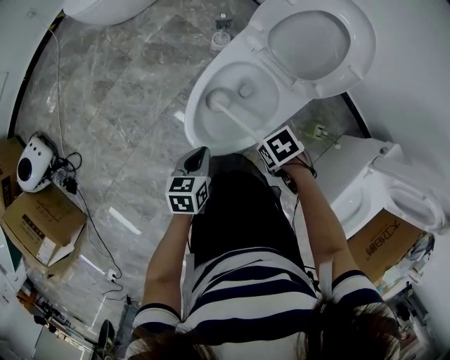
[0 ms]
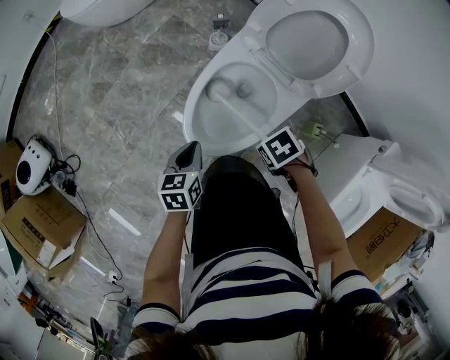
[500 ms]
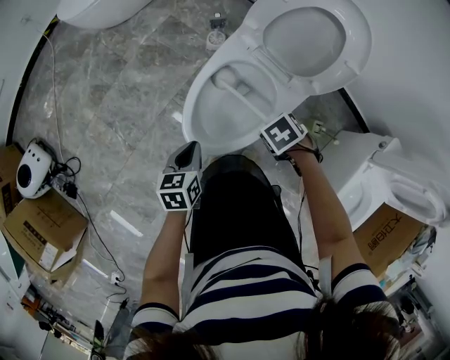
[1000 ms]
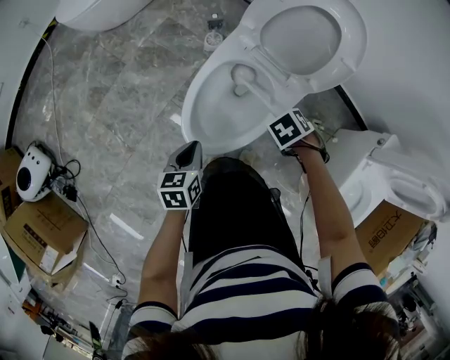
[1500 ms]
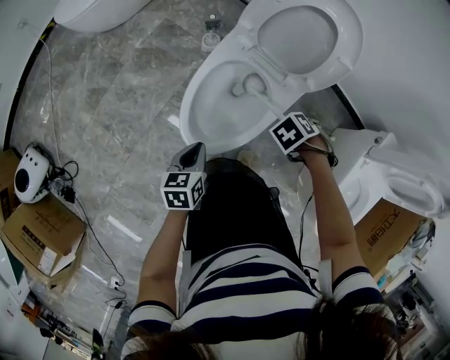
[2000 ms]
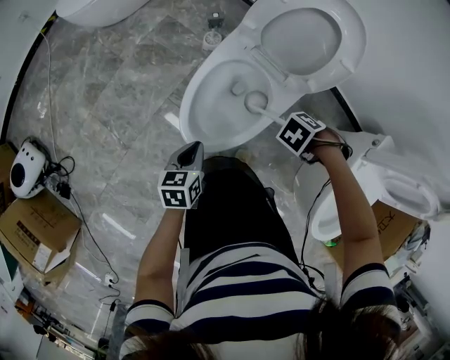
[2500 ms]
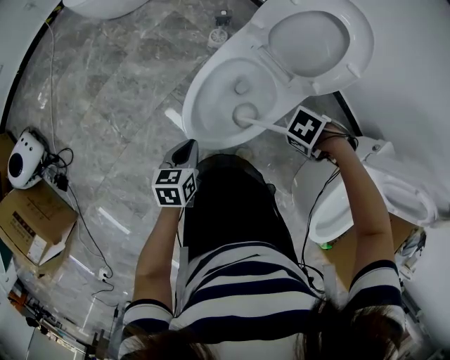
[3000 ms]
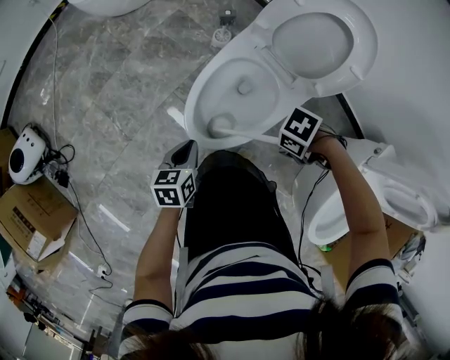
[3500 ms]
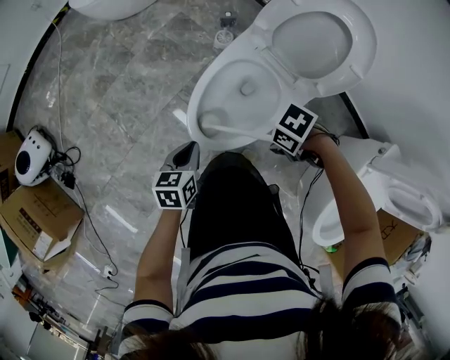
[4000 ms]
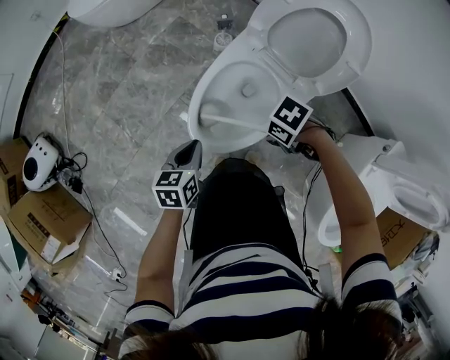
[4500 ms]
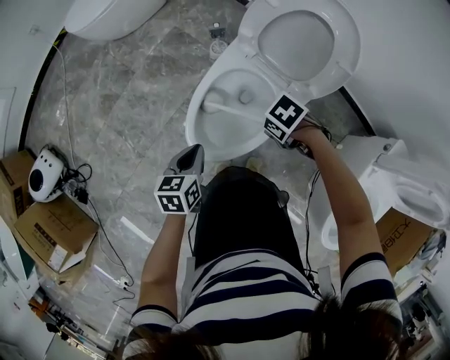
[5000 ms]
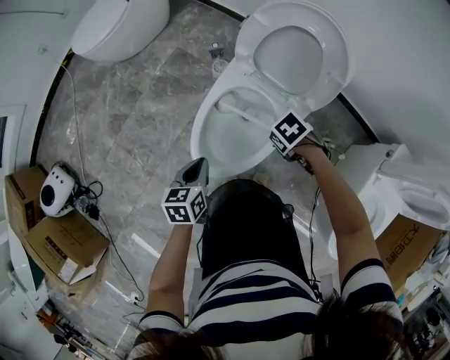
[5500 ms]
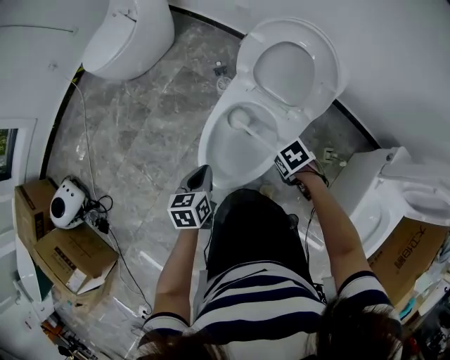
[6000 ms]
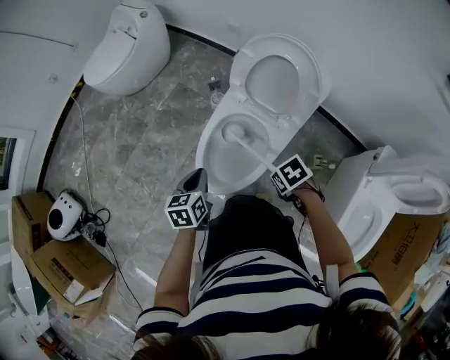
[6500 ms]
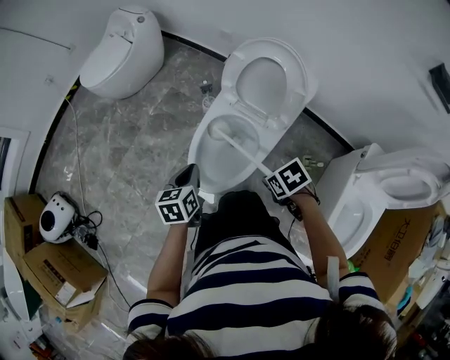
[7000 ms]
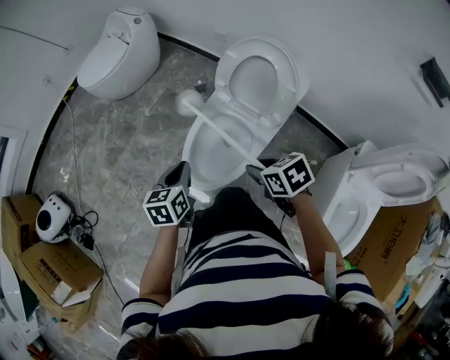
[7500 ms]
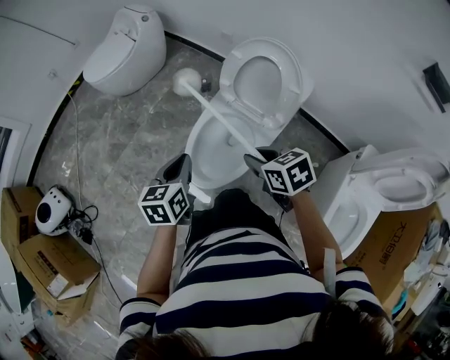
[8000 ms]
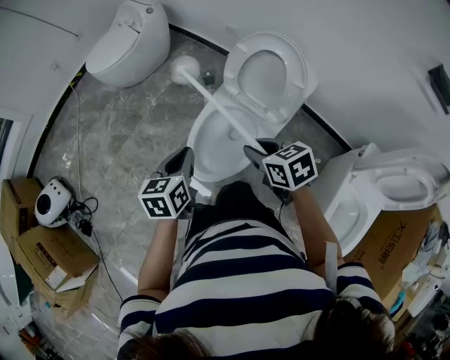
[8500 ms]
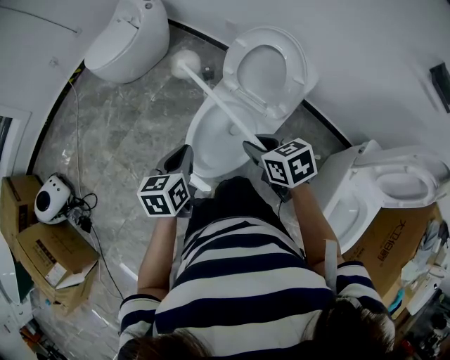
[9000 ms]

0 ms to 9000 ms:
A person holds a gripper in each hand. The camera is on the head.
4500 ms to 7000 ms: The left gripper heads upward, covering approximately 15 cm.
7000 ms to 9000 ms: The left gripper shifts about 10 cm upward.

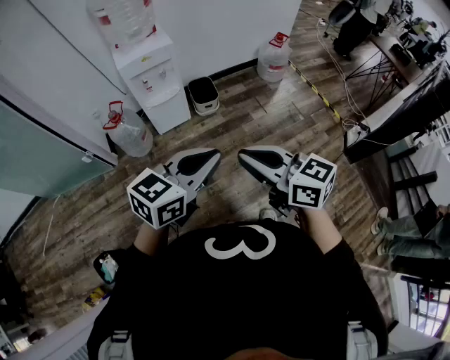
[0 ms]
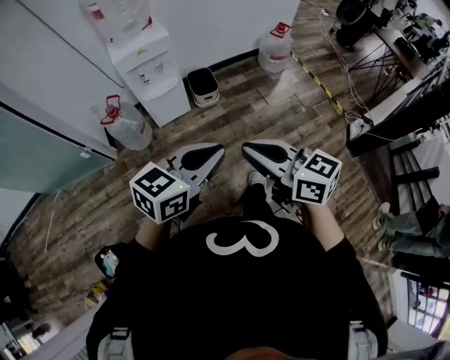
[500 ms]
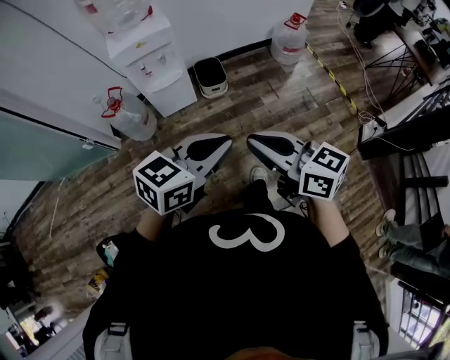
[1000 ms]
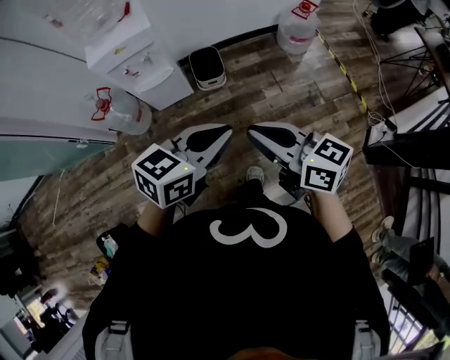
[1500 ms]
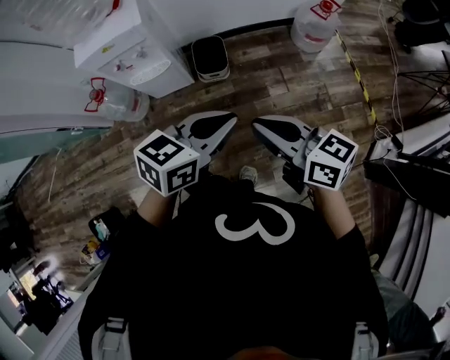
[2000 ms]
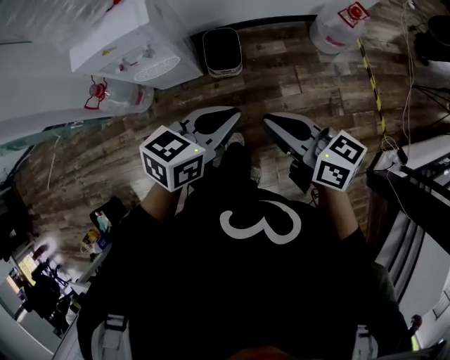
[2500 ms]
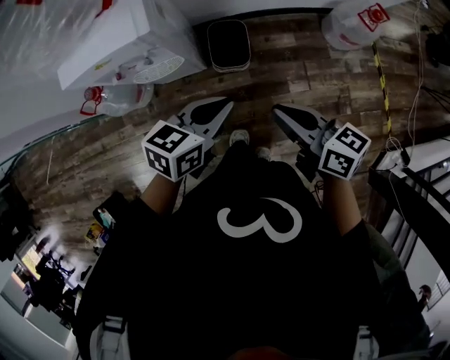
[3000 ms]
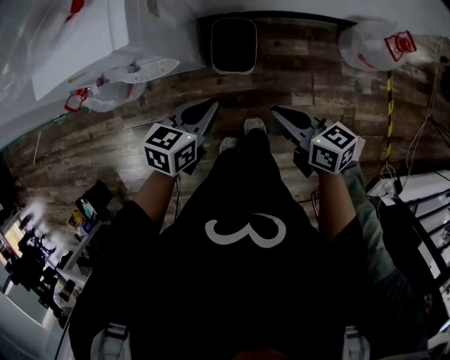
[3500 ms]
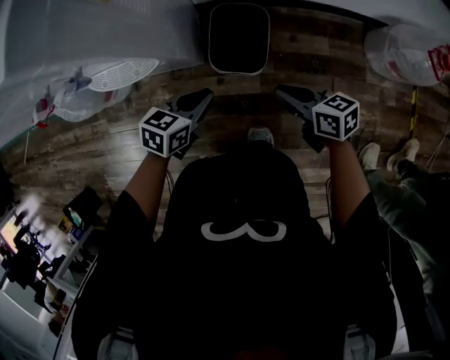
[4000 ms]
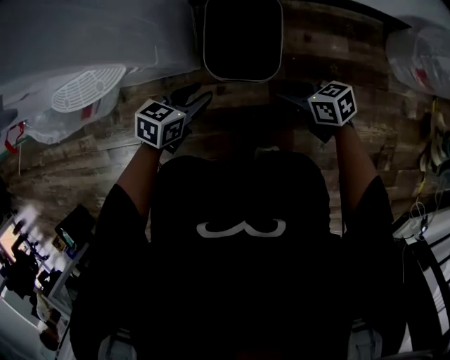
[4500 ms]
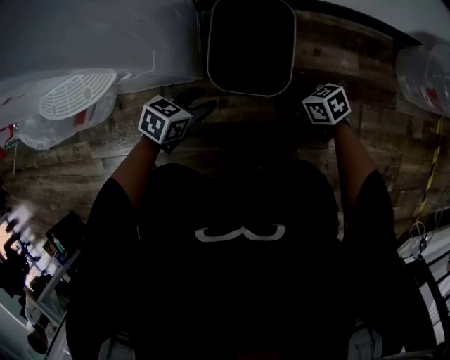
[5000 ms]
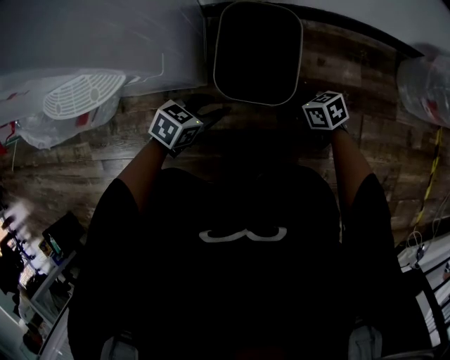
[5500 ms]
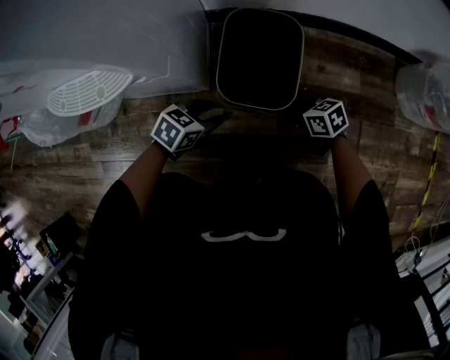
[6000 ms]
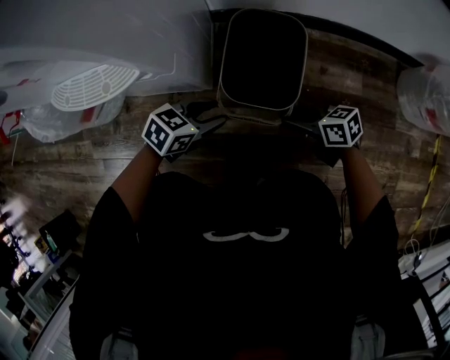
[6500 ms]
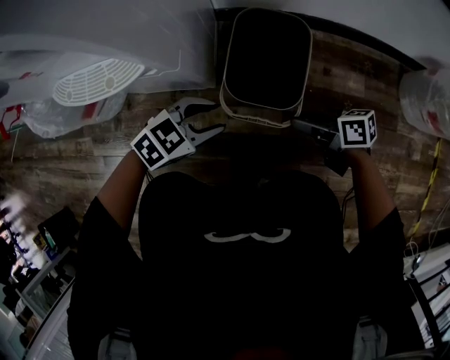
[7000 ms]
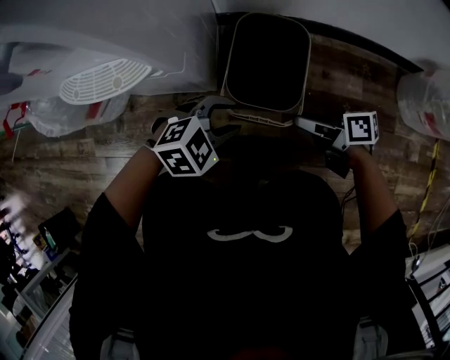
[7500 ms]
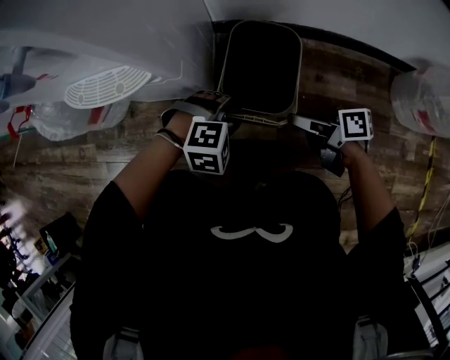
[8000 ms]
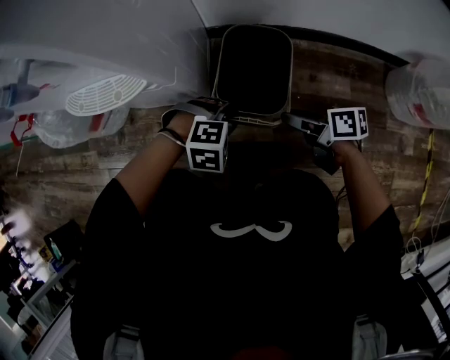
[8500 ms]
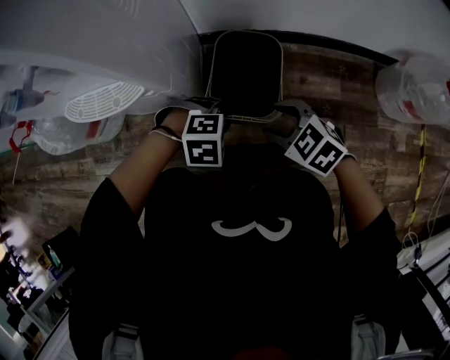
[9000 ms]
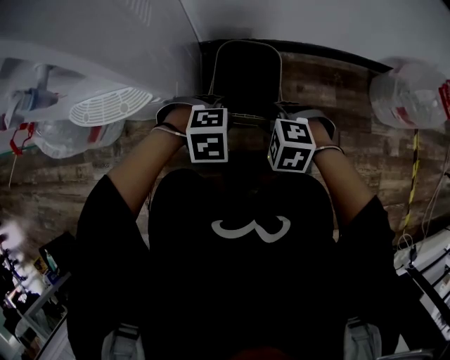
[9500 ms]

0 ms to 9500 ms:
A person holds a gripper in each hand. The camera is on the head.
0 ms to 2000 ms: Both grippers travel together forward and to the right, some 40 cm.
2000 ms to 4000 ms: Both grippers travel together downward and forward, approximately 60 cm. The right gripper swivels some 30 degrees. The left gripper swivels approximately 30 degrees.
4000 ms to 5500 ms: Both grippers move downward, about 30 cm. The right gripper opens. Meanwhile the left gripper opens up.
5500 ms to 7500 ms: The two grippers go roughly 15 cm upward. The right gripper rotates about 40 degrees. Meanwhile the left gripper rotates around the line of its fingers by some 40 degrees, clockwise from behind.
7500 ms to 9500 ms: The left gripper turns by some 20 degrees, and closes; the right gripper shifts by roughly 5 cm, and twists about 90 degrees counterclockwise, seen from behind.

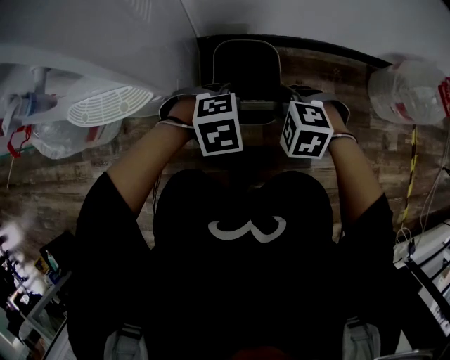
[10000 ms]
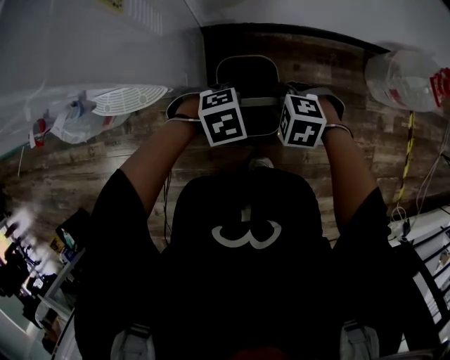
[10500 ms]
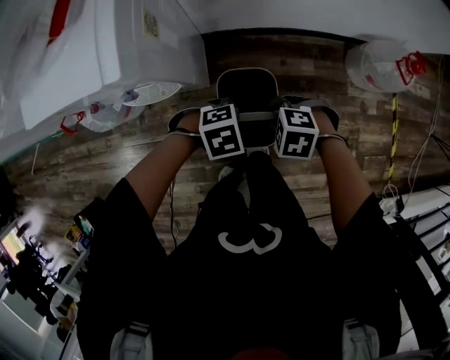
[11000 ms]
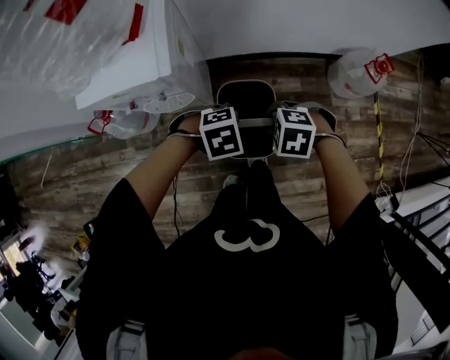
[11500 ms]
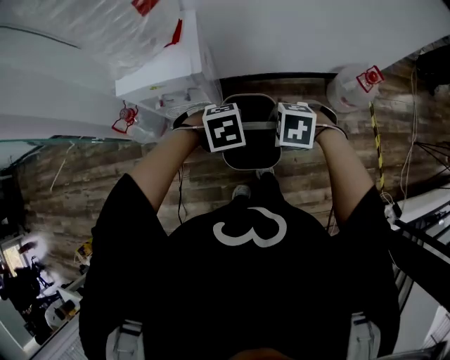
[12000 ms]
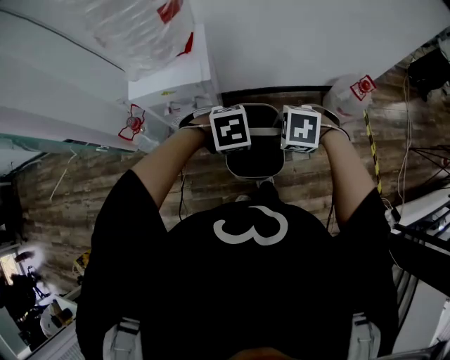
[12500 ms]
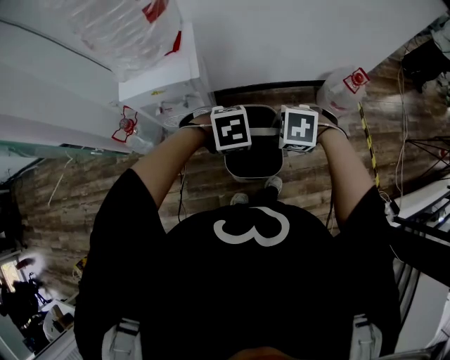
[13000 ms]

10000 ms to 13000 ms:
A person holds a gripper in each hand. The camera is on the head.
10000 ms to 11500 ms: Both grippers move upward, roughly 40 cm.
11500 ms to 13000 ms: The two grippers go approximately 15 cm upward.

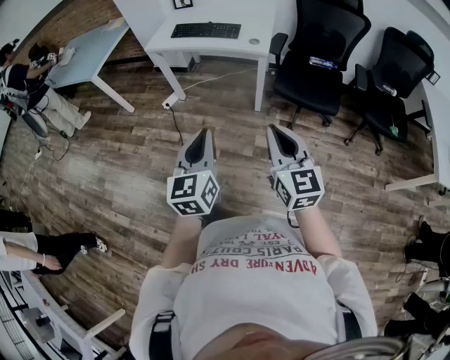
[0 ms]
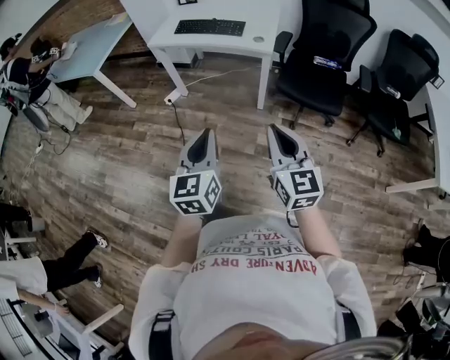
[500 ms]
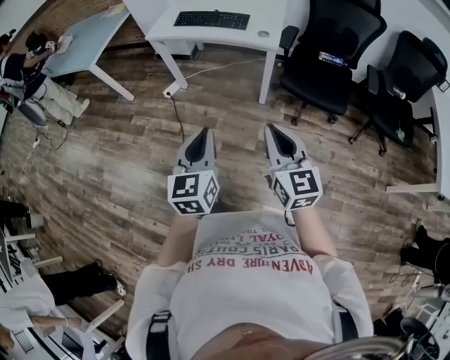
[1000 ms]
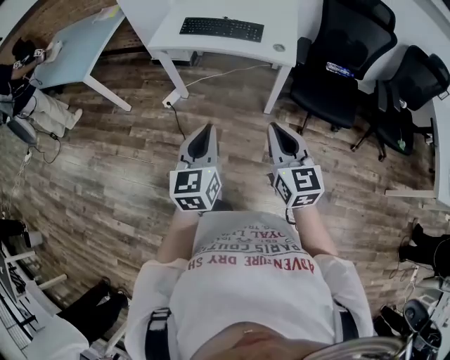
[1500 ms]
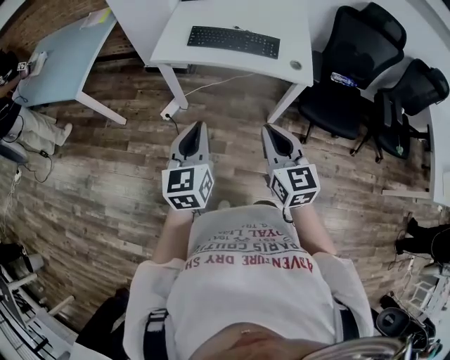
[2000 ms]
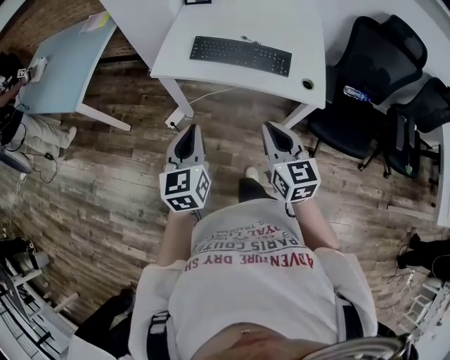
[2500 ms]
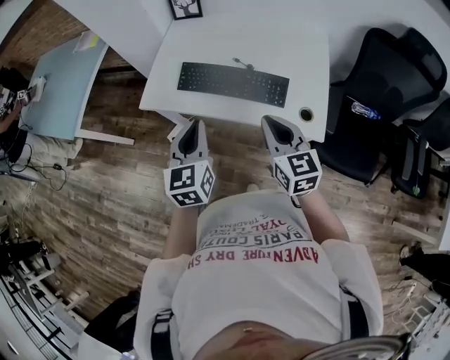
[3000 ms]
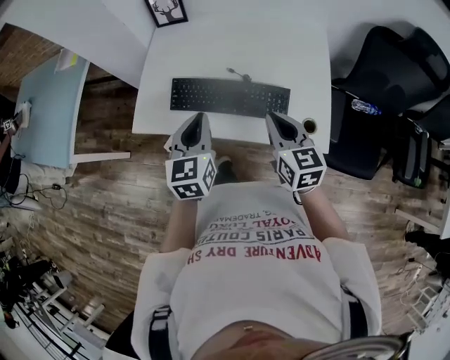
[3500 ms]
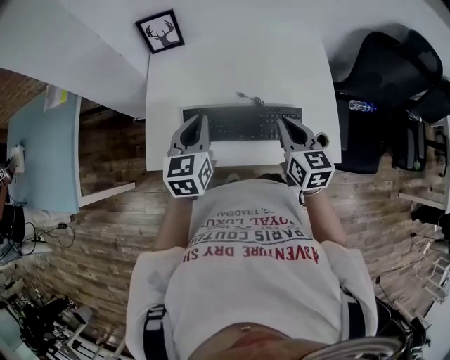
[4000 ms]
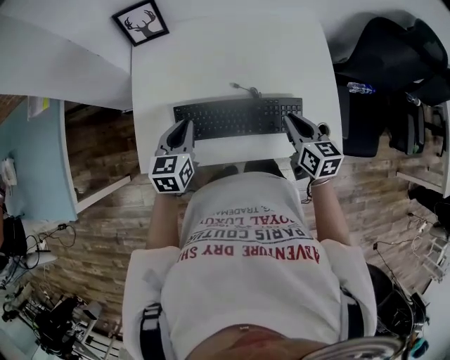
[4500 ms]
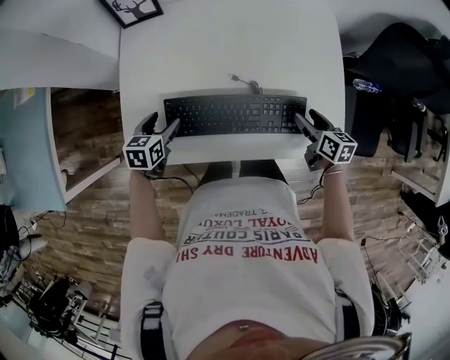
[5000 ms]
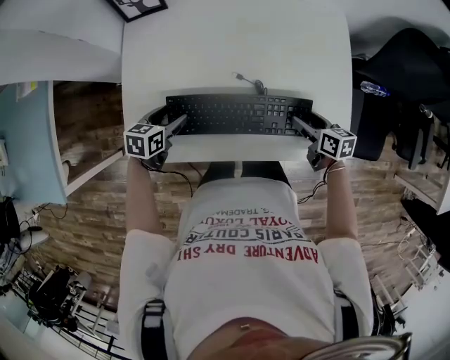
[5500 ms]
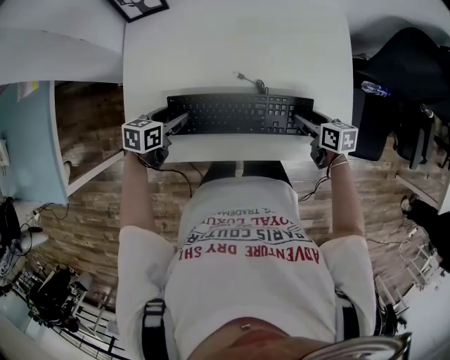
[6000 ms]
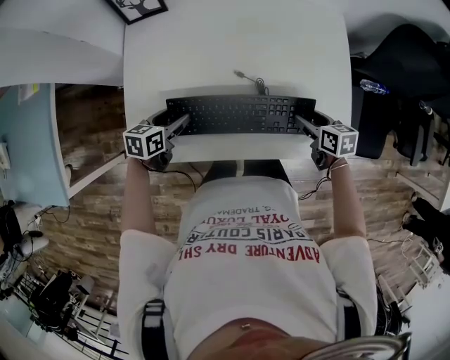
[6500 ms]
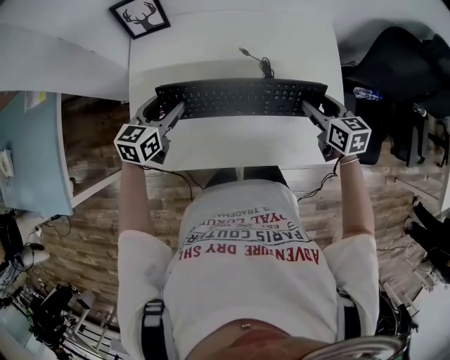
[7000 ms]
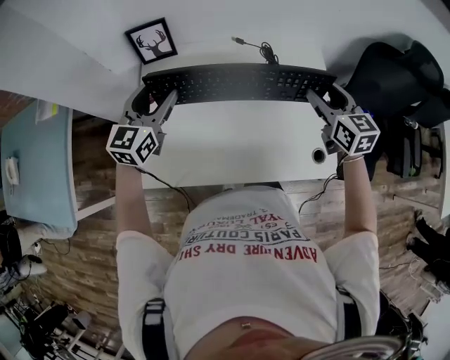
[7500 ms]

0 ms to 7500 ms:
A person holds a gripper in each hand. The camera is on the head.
0 ms to 2000 ms: The grippers both shift forward and to the left by some 40 cm.
2000 ms to 4000 ms: The pair of grippers is taken forward, approximately 50 cm.
4000 ms to 5500 ms: The left gripper is displaced downward by roughly 25 cm, rotates roughly 40 degrees, and opens; the right gripper travels downward and to the right by approximately 25 cm, turns by some 30 degrees, and opens up.
5500 ms to 7500 ms: Both grippers move upward, some 25 cm. The left gripper tilts its fingers roughly 40 degrees upward; the right gripper turns by approximately 40 degrees.
